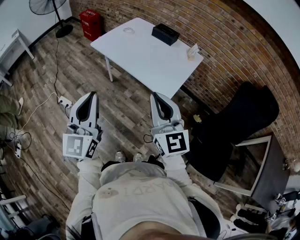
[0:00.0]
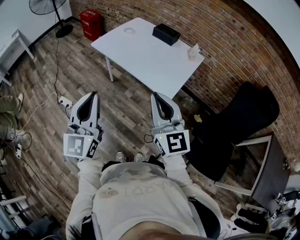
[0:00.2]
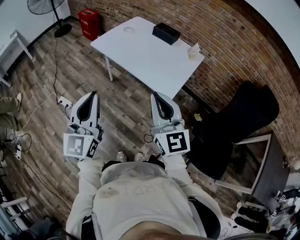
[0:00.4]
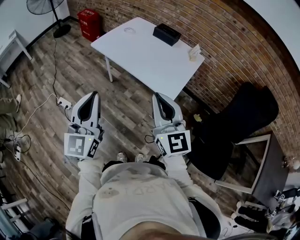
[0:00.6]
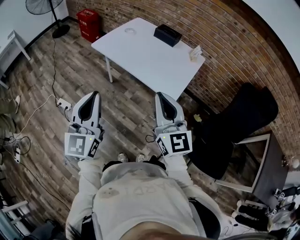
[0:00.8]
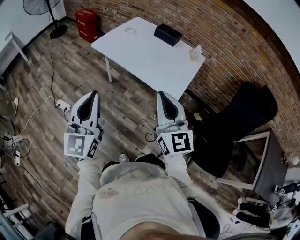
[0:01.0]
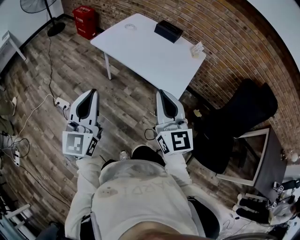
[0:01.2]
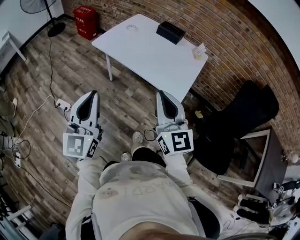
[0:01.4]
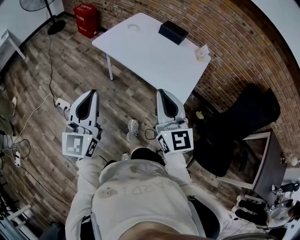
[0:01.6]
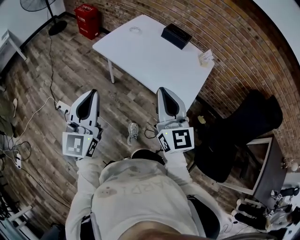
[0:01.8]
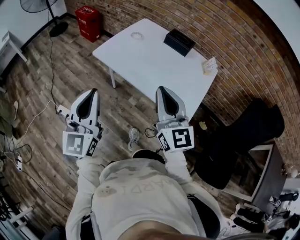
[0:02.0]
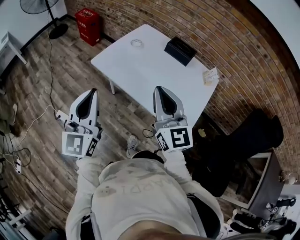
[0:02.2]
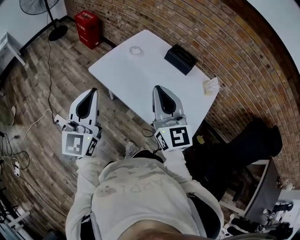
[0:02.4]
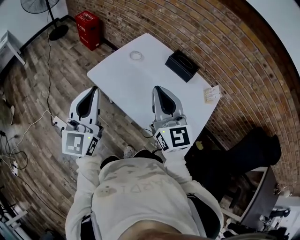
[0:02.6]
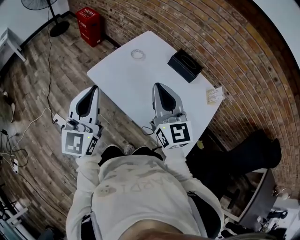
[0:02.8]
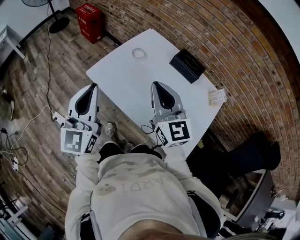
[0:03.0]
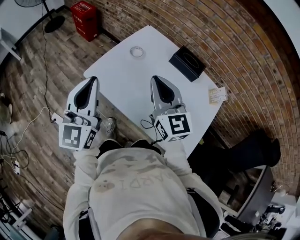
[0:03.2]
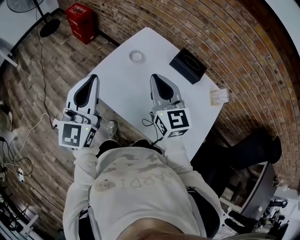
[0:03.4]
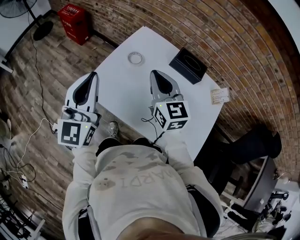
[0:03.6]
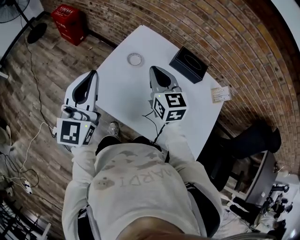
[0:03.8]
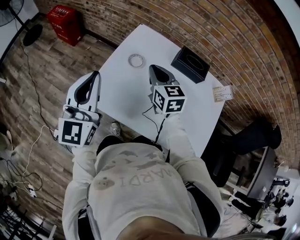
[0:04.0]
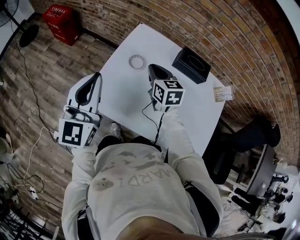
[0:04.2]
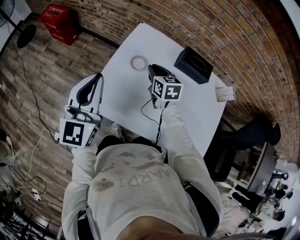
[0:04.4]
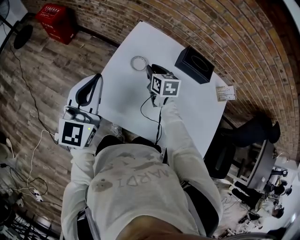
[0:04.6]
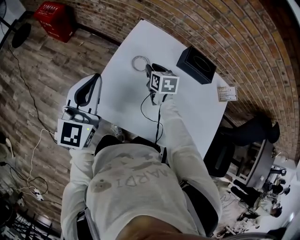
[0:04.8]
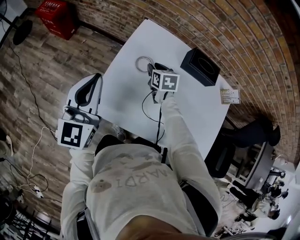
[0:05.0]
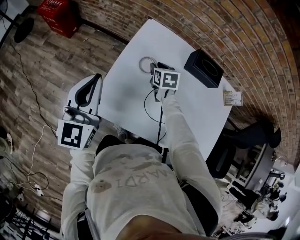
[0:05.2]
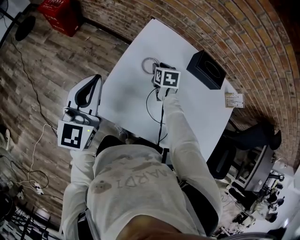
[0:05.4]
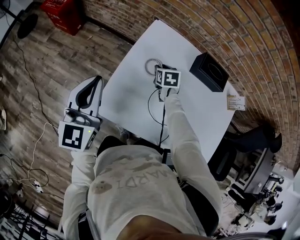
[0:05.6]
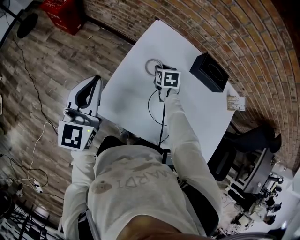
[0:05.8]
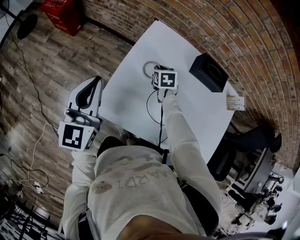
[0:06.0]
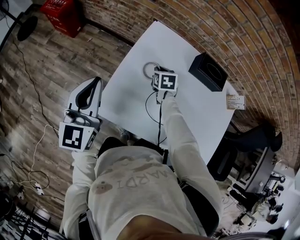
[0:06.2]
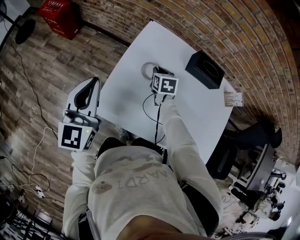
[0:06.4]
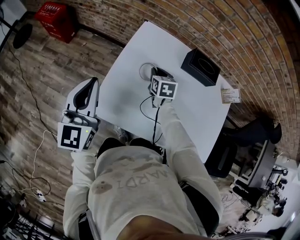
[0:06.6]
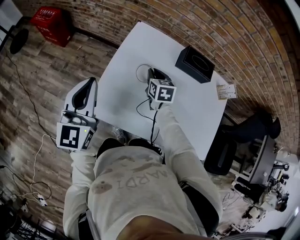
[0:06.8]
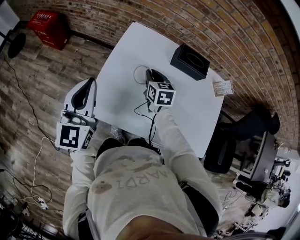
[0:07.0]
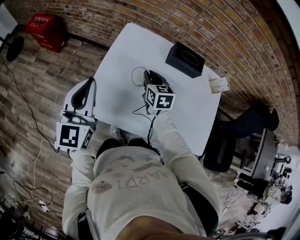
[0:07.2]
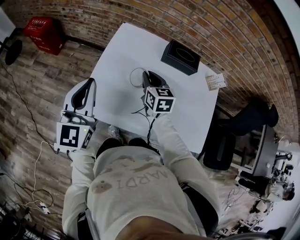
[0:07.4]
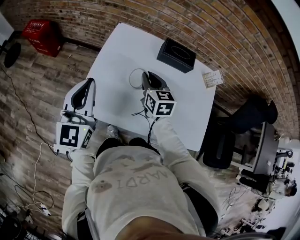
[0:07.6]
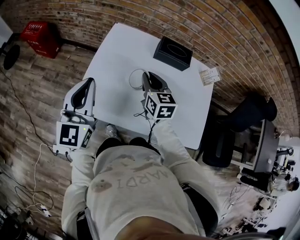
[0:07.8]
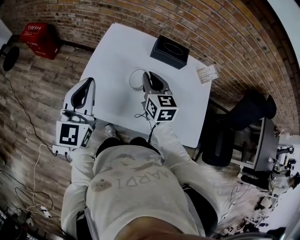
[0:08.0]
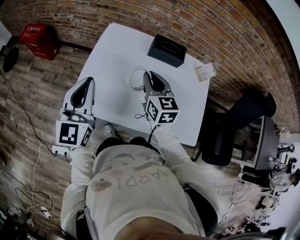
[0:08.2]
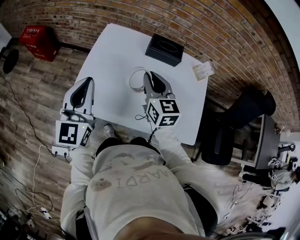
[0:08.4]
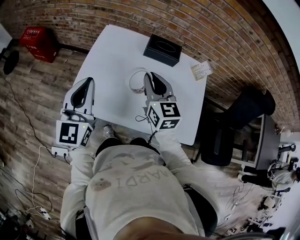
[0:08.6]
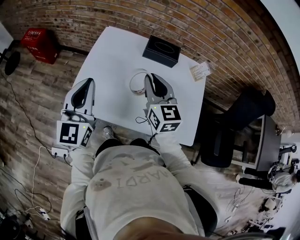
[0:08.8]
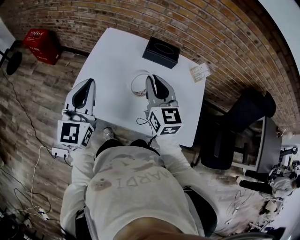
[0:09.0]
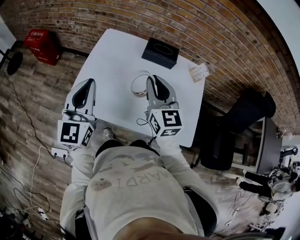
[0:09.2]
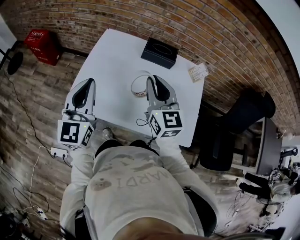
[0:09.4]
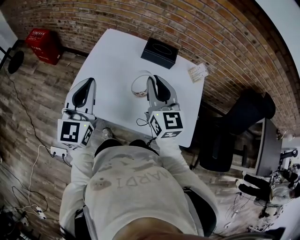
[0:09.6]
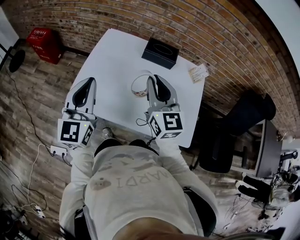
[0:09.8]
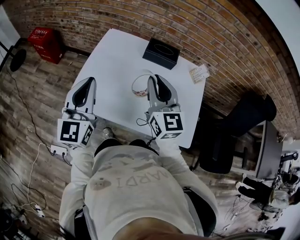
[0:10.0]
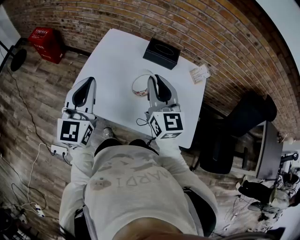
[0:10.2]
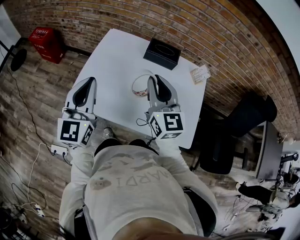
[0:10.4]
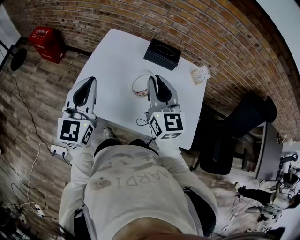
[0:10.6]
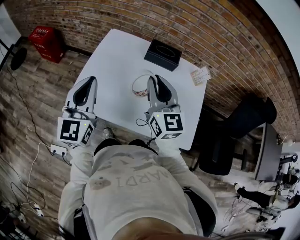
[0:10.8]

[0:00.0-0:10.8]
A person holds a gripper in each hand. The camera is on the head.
0:00.0 to 0:01.6: Both grippers move to the left and forward, some 15 cm.
0:01.6 to 0:03.0: The grippers both shift forward by approximately 40 cm.
0:03.0 to 0:04.6: The right gripper goes approximately 40 cm forward and downward, and tips its fingers downward by about 40 degrees. Meanwhile the left gripper heads forward, covering approximately 30 cm, and swivels approximately 20 degrees.
0:04.6 to 0:06.2: The right gripper shifts approximately 10 cm downward, while the left gripper moves to the left, some 5 cm.
0:06.2 to 0:07.8: The left gripper moves to the right, backward and upward, roughly 15 cm, while the right gripper goes about 25 cm upward, backward and to the right, and points its fingers about 30 degrees further upward.
0:07.8 to 0:09.2: The left gripper heads to the right and backward, covering some 10 cm. The right gripper heads upward, backward and to the right, covering approximately 20 cm.
0:09.2 to 0:10.8: The grippers stay close to where they were, moving slightly.

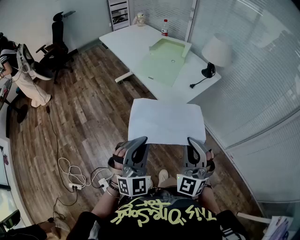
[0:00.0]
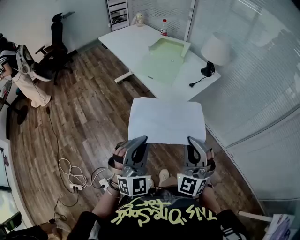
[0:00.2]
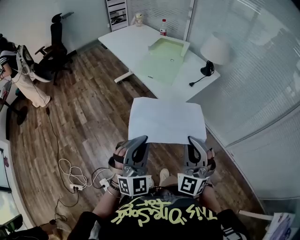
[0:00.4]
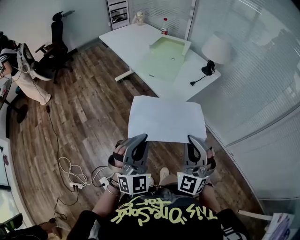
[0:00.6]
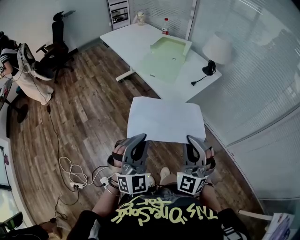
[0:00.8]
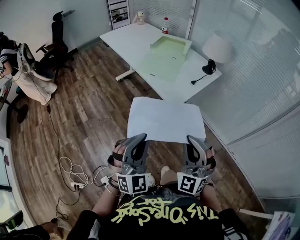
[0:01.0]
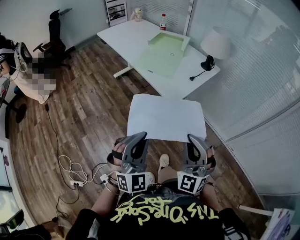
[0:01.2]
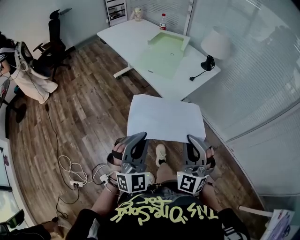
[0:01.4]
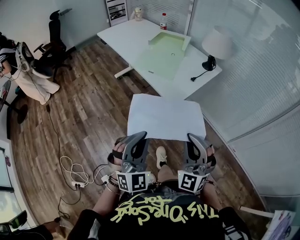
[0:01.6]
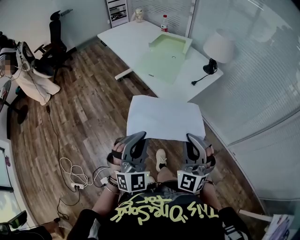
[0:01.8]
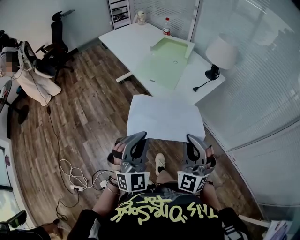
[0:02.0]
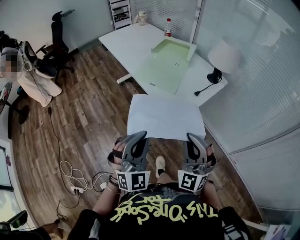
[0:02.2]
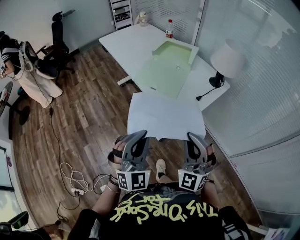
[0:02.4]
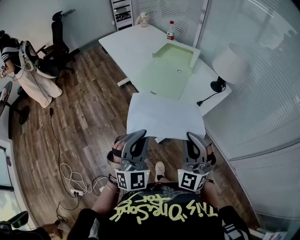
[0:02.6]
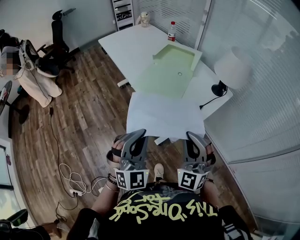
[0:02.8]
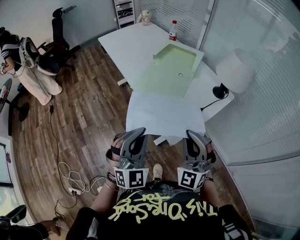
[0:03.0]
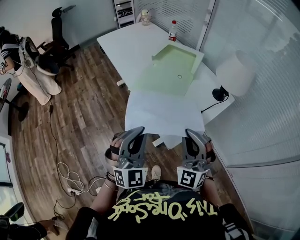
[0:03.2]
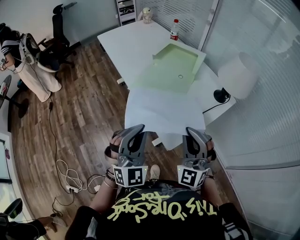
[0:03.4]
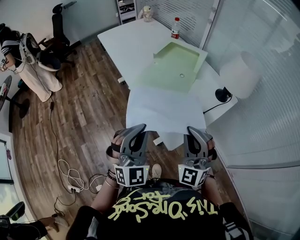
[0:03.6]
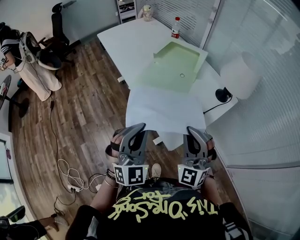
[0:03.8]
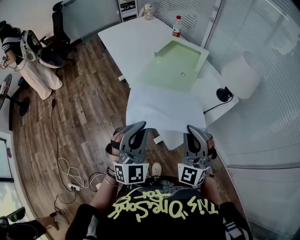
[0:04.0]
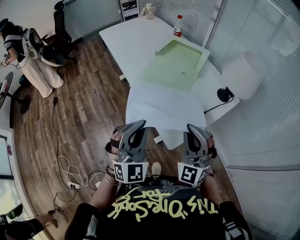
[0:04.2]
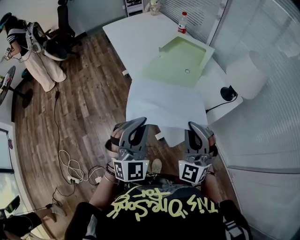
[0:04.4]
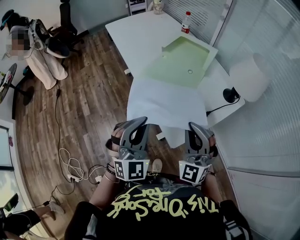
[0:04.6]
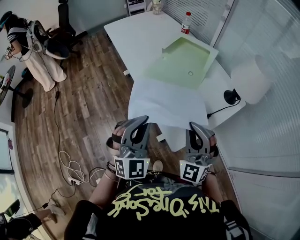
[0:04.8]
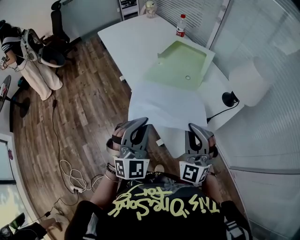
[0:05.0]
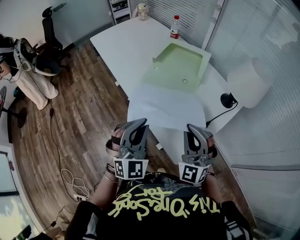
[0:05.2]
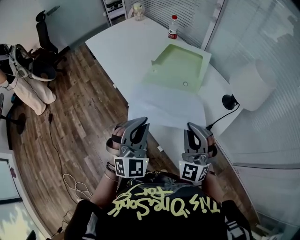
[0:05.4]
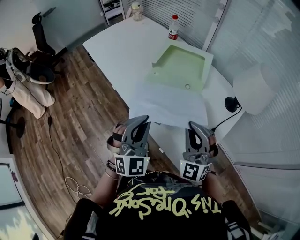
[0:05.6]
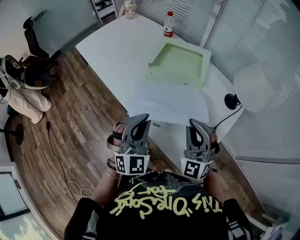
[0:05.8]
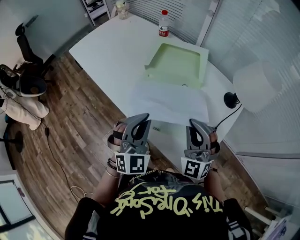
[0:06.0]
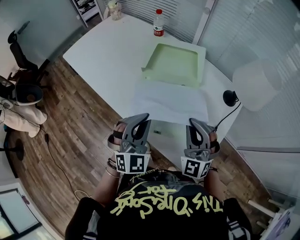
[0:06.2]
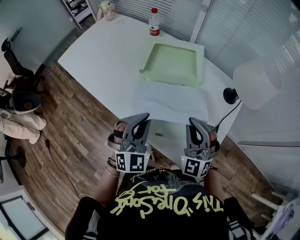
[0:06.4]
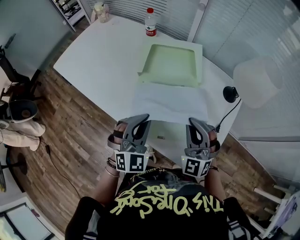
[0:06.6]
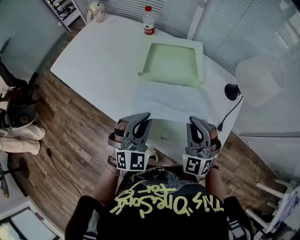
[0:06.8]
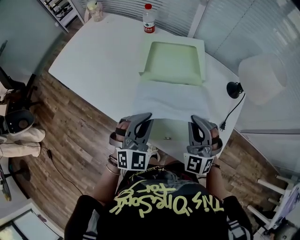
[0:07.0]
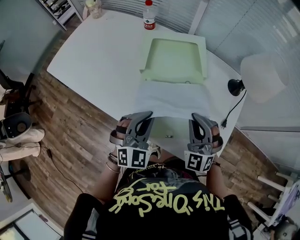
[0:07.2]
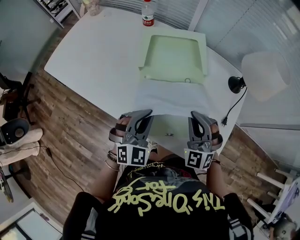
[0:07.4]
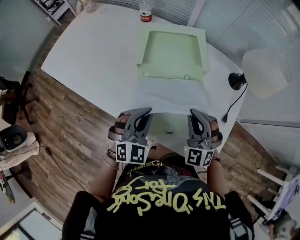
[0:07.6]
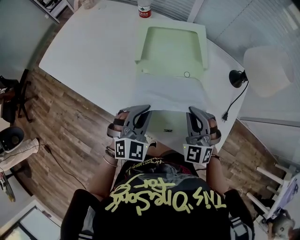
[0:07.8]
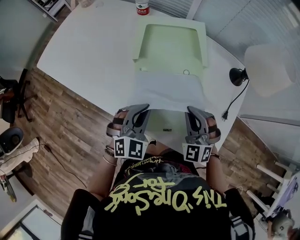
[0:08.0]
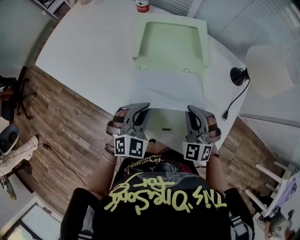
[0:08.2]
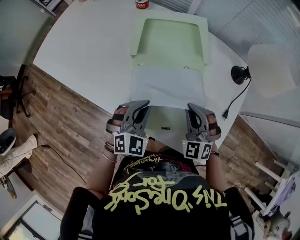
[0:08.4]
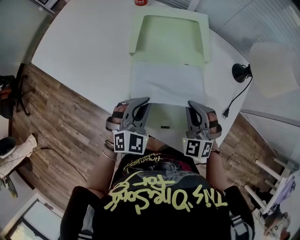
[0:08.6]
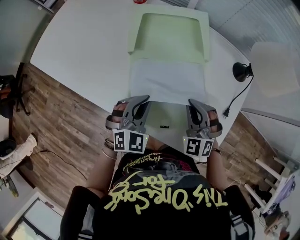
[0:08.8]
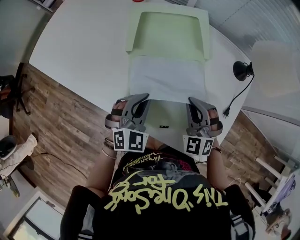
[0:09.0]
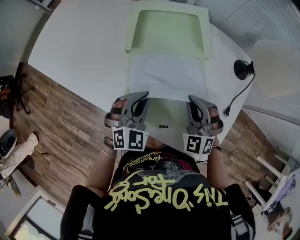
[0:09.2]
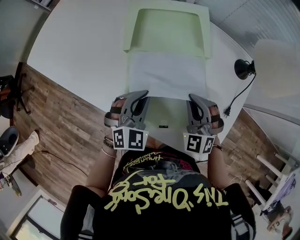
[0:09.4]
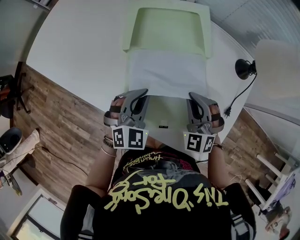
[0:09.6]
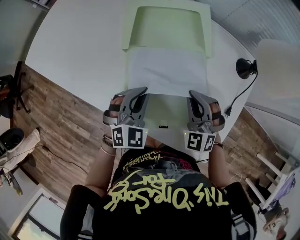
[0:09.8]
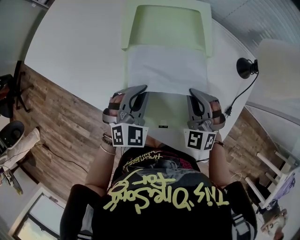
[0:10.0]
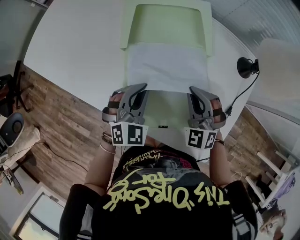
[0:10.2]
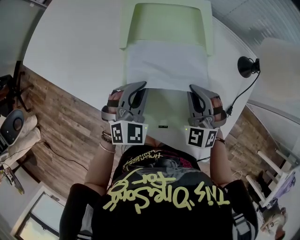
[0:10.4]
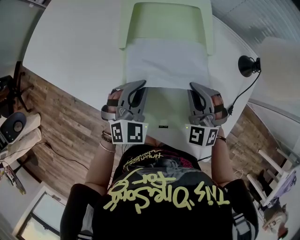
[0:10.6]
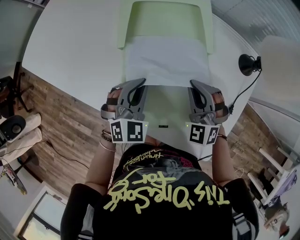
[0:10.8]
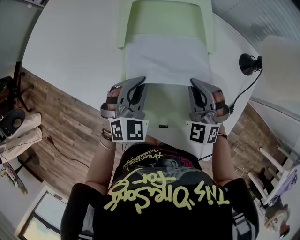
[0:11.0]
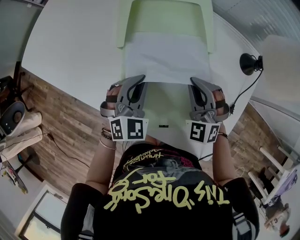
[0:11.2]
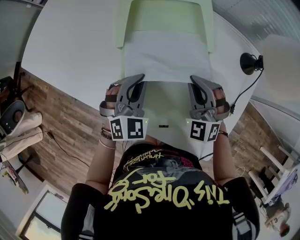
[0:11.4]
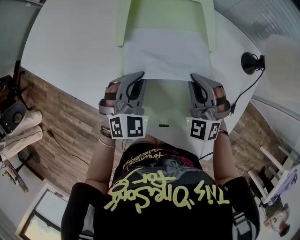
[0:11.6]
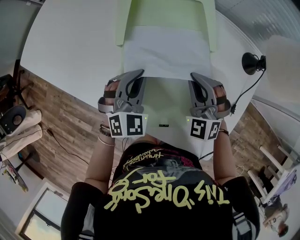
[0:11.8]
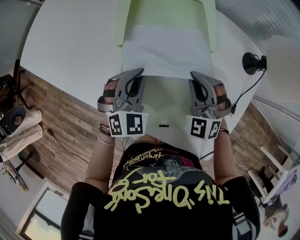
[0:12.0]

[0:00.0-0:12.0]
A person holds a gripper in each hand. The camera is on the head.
0:00.0 to 0:01.6: The grippers stay close to where they were, moving slightly.
0:01.6 to 0:03.0: Both grippers move forward, about 20 cm.
0:03.0 to 0:04.4: The grippers move only a little.
0:04.4 to 0:06.0: Both grippers move forward, some 20 cm.
0:06.0 to 0:07.6: The left gripper is displaced downward and forward by roughly 10 cm, and changes its angle by approximately 20 degrees; the right gripper moves downward, approximately 5 cm.
0:07.6 to 0:09.0: The right gripper moves downward, approximately 5 cm.
0:09.0 to 0:10.4: The grippers stay close to where they were, moving slightly.
0:10.4 to 0:12.0: The grippers move only a little.

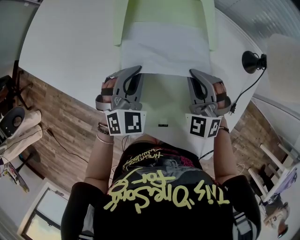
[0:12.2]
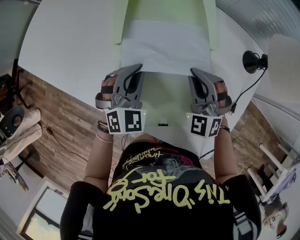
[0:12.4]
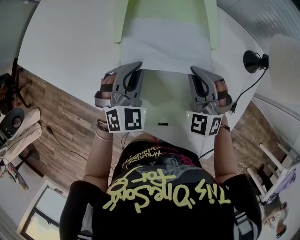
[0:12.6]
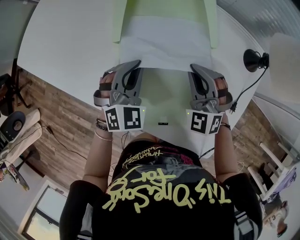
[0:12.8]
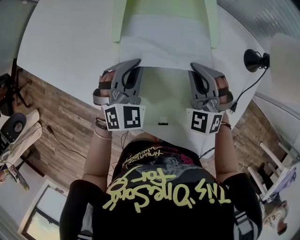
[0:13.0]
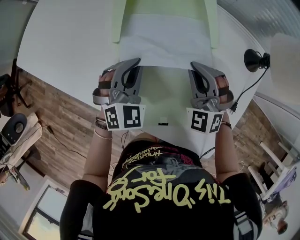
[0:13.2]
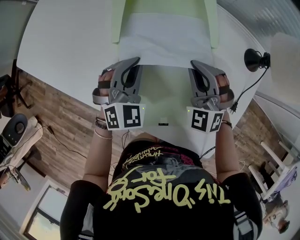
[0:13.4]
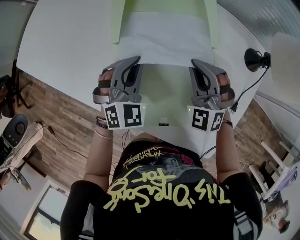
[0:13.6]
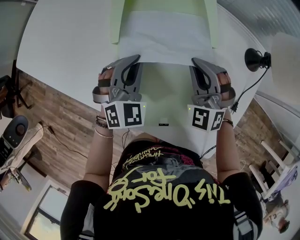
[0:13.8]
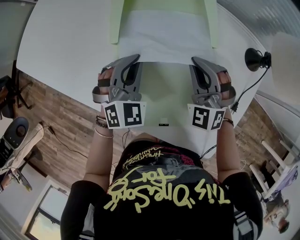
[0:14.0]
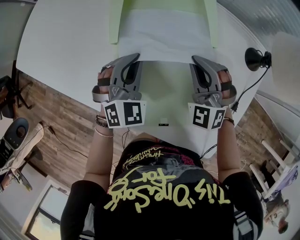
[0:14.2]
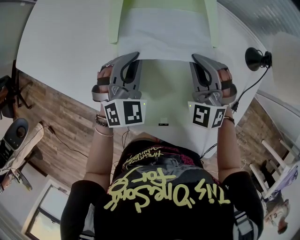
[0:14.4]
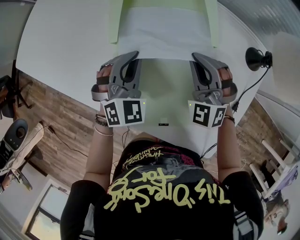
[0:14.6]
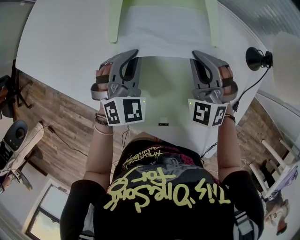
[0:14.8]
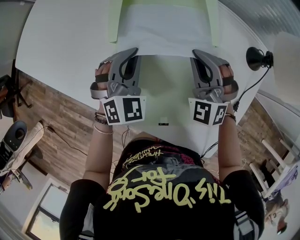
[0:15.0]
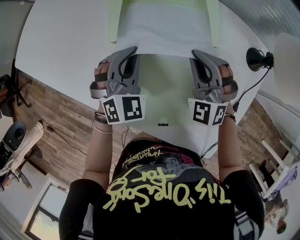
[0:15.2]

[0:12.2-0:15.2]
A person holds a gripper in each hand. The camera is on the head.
0:12.2 to 0:15.2: There are only small adjustments of the grippers.
